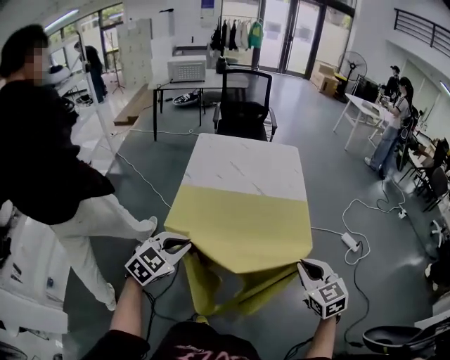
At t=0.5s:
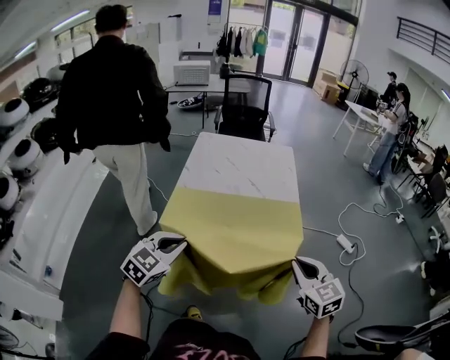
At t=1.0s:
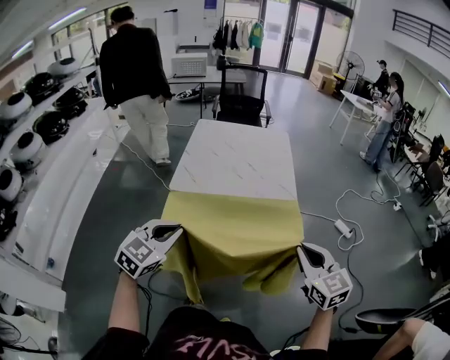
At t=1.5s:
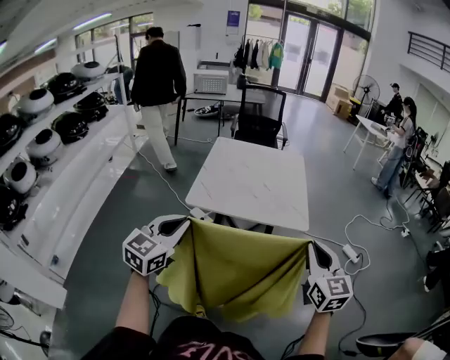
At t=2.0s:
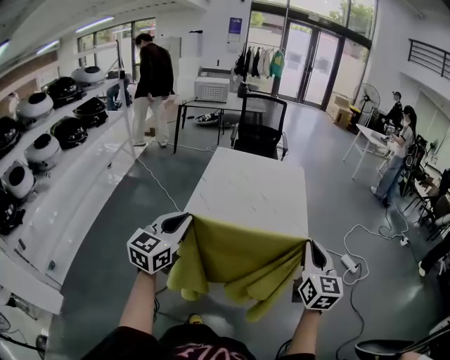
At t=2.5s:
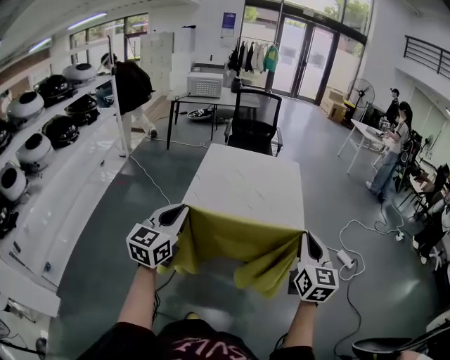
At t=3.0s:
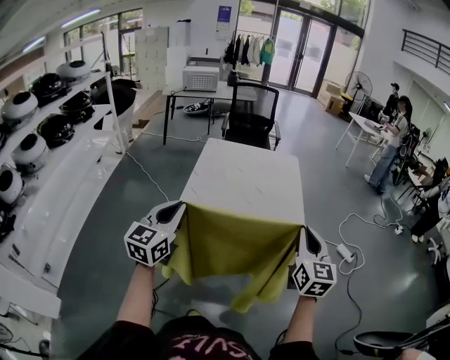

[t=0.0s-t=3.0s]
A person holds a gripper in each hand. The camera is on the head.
t=0.0s to t=1.5s: The two grippers go roughly 20 cm backward and upward. The left gripper changes its angle by about 30 degrees. Meanwhile the right gripper swivels roughly 20 degrees.
t=1.5s to t=3.0s: The two grippers go approximately 10 cm forward.

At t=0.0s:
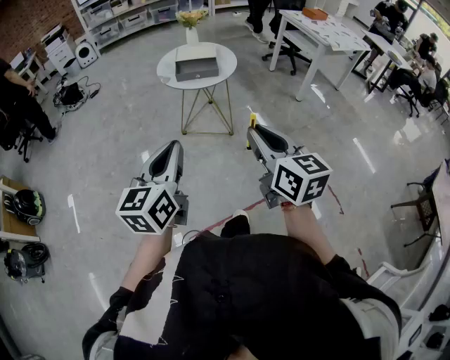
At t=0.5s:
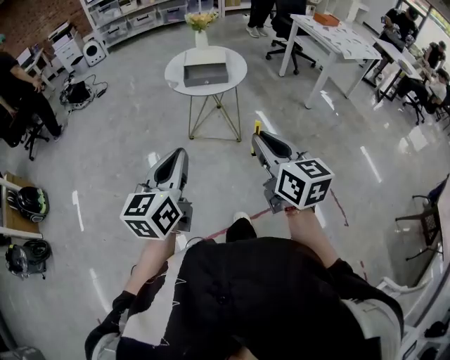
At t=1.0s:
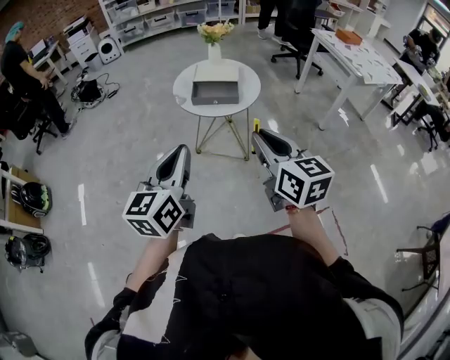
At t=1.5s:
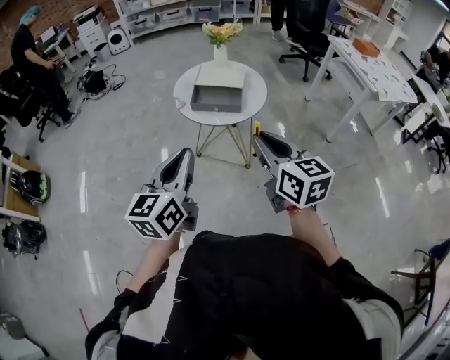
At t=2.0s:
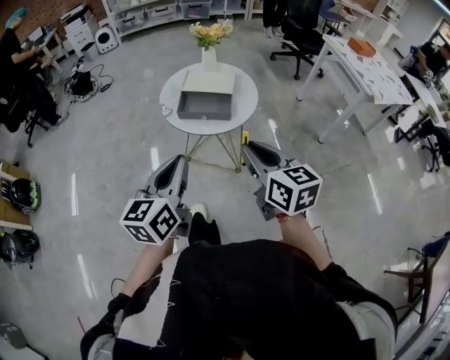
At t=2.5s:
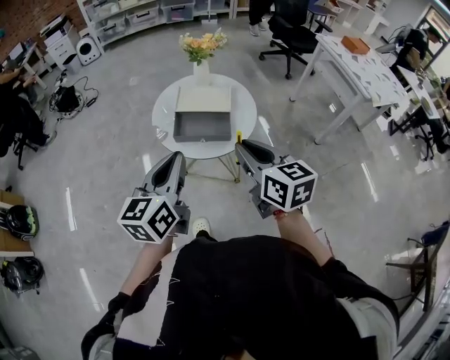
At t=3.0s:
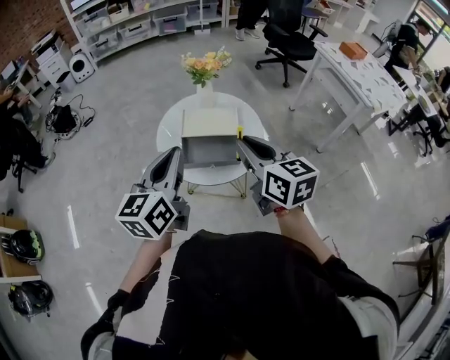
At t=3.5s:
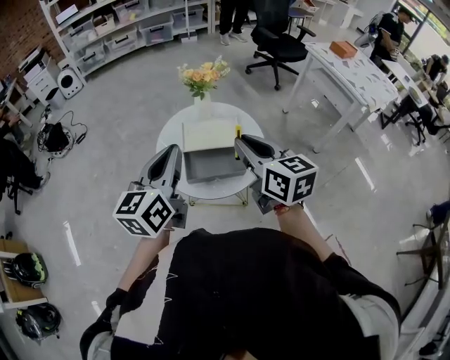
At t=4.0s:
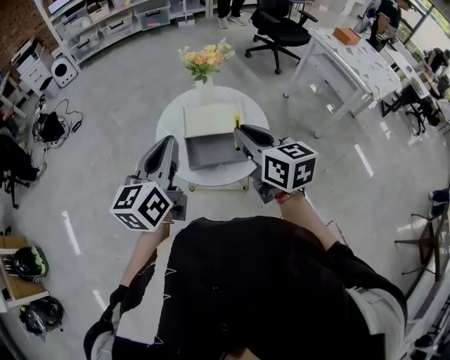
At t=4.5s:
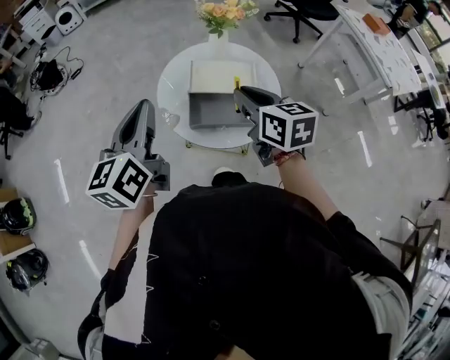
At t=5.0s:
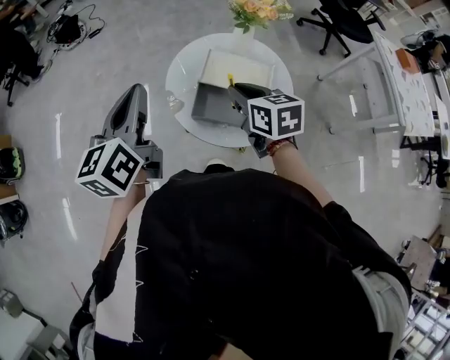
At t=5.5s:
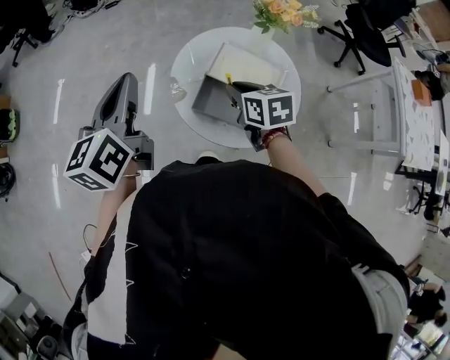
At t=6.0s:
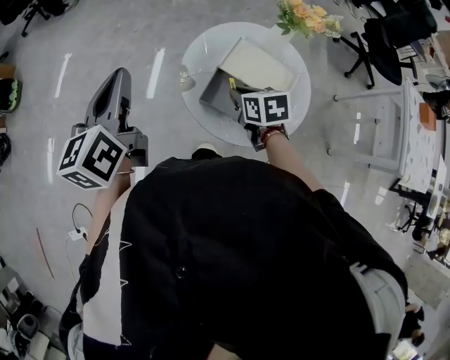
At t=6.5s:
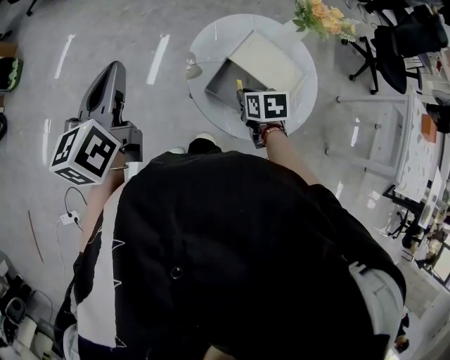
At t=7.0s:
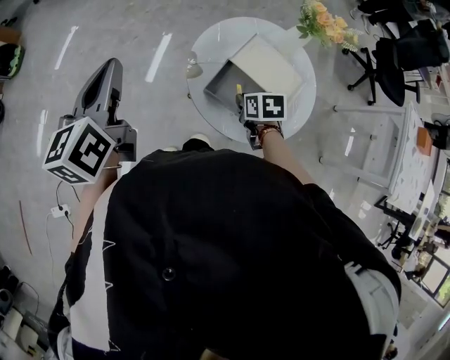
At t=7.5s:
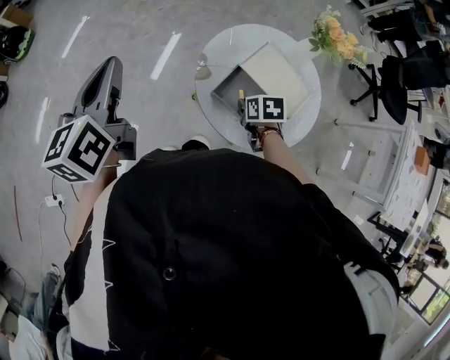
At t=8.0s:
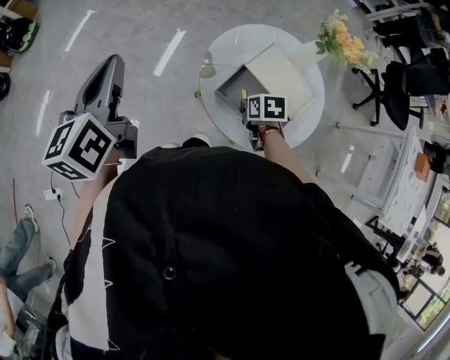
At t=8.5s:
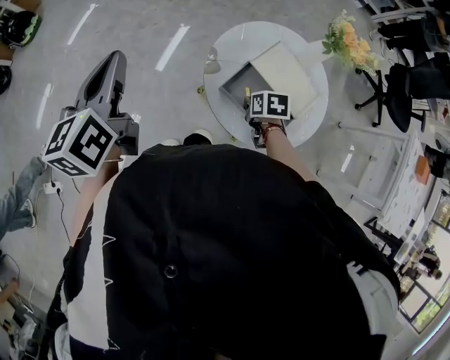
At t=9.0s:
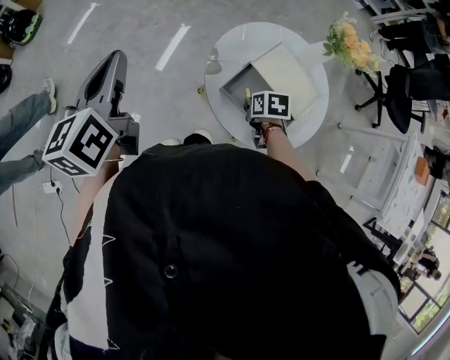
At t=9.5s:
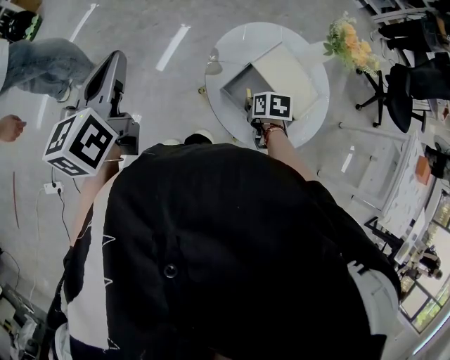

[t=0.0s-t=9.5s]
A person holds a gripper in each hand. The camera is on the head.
t=0.0s to t=2.0s: The grippers both shift forward by approximately 30 cm.
t=2.0s to t=4.0s: Both grippers travel together forward, approximately 30 cm.
t=4.0s to t=5.5s: The right gripper heads downward, covering roughly 15 cm, and changes its angle by roughly 40 degrees. The left gripper moves approximately 10 cm, and changes its angle by about 40 degrees.
t=5.5s to t=7.5s: The right gripper shifts approximately 15 cm downward, and turns by approximately 20 degrees. Meanwhile the left gripper shifts some 10 cm to the left.
t=7.5s to t=9.5s: The grippers stay close to where they were, moving slightly.

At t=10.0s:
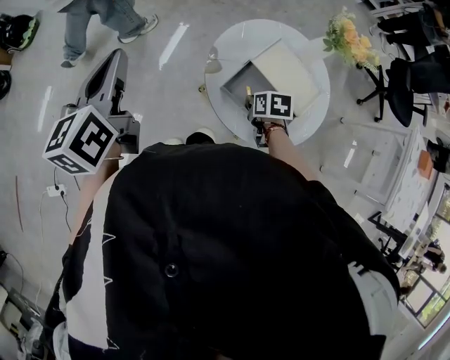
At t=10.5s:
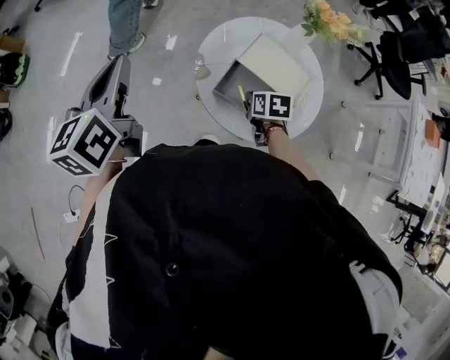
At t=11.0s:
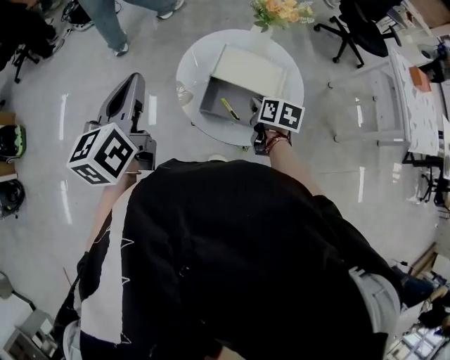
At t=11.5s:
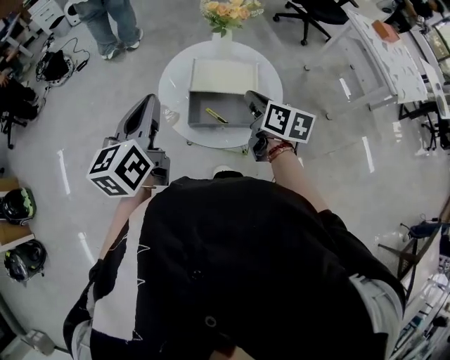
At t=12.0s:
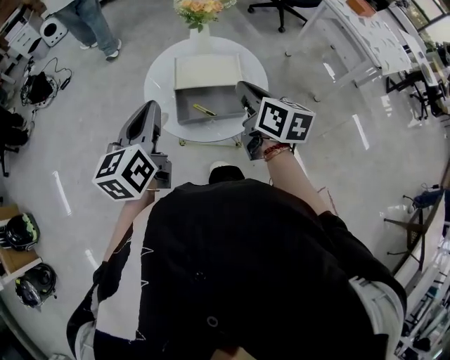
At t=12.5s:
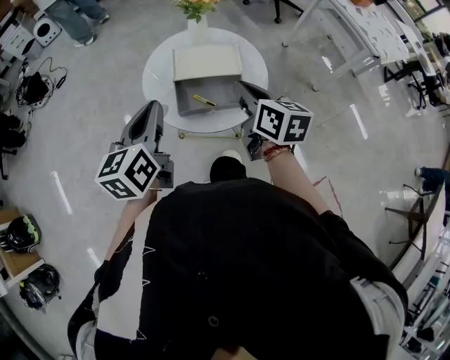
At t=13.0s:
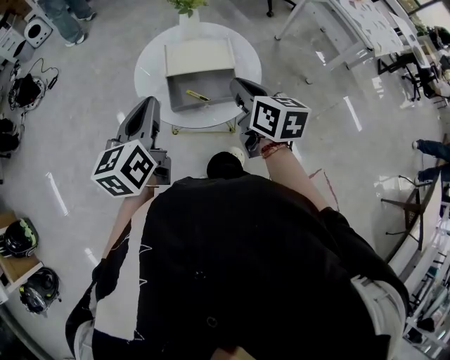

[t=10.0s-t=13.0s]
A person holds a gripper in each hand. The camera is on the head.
t=10.0s to t=11.5s: The right gripper travels upward by about 20 cm, and tips its fingers upward by some 40 degrees. Meanwhile the left gripper changes place by roughly 20 cm, and changes its angle by some 40 degrees.
t=11.5s to t=13.0s: The left gripper ends up about 5 cm from where it was, while the right gripper shifts about 5 cm backward.

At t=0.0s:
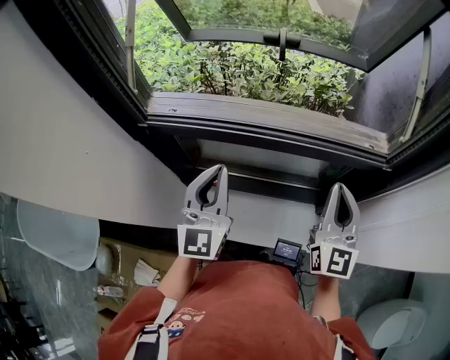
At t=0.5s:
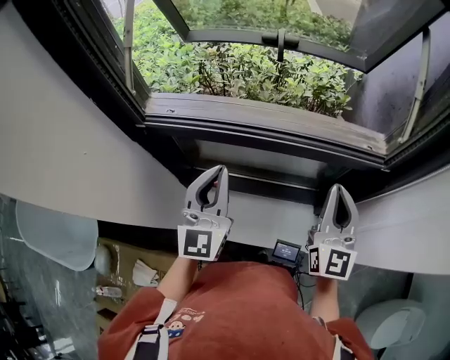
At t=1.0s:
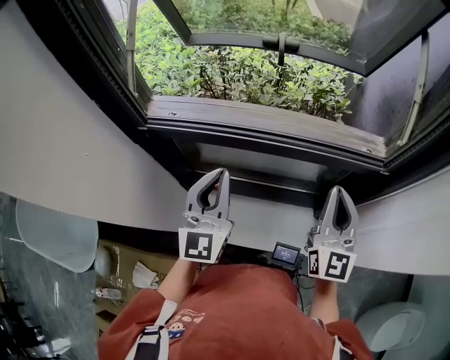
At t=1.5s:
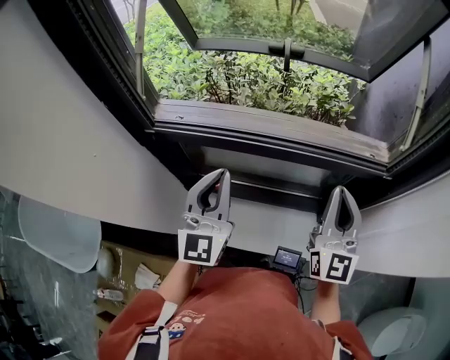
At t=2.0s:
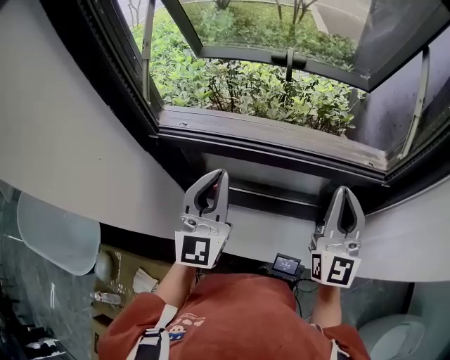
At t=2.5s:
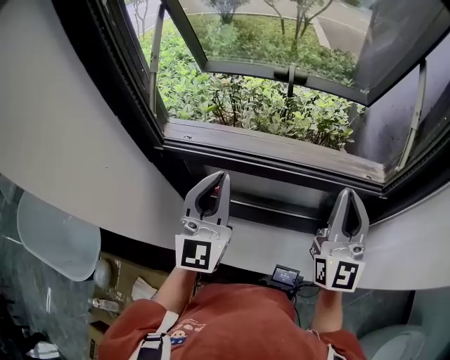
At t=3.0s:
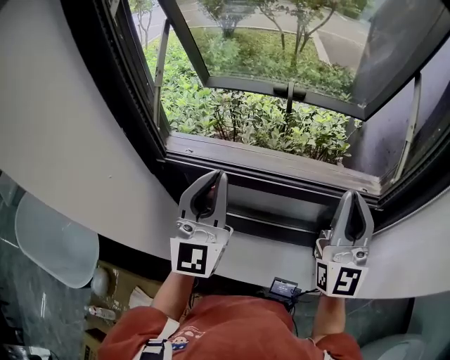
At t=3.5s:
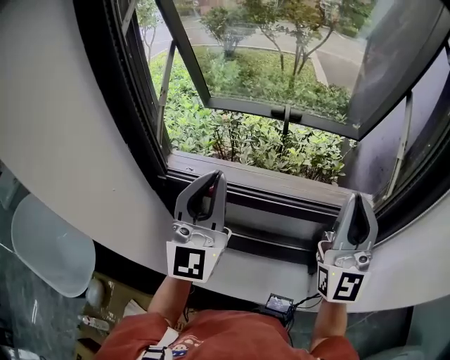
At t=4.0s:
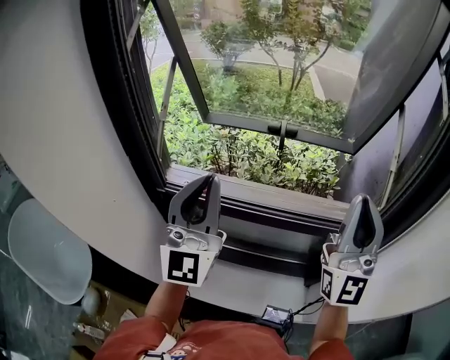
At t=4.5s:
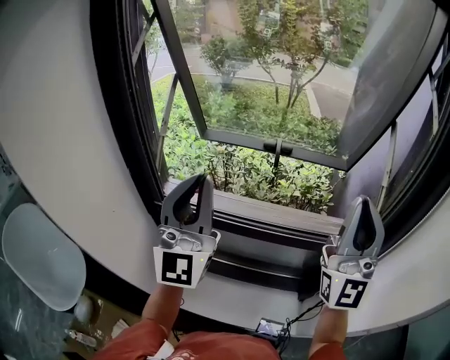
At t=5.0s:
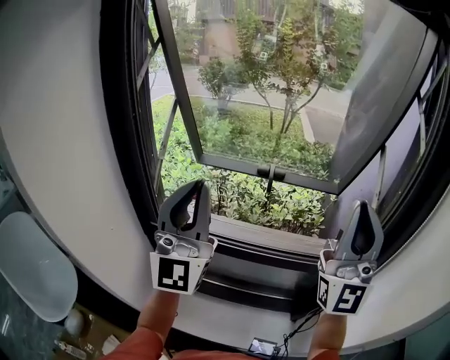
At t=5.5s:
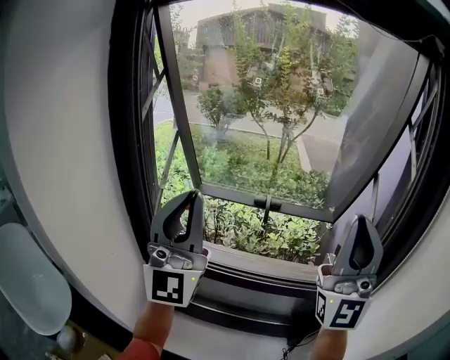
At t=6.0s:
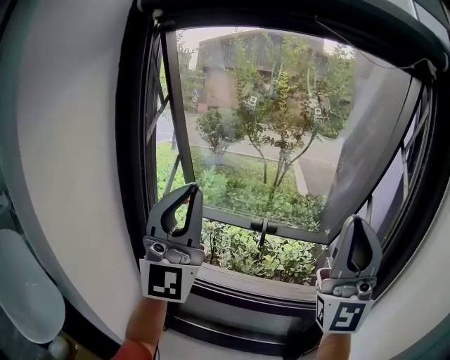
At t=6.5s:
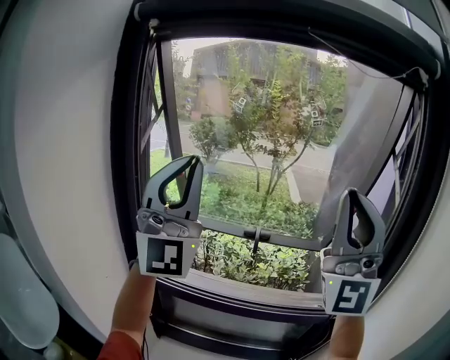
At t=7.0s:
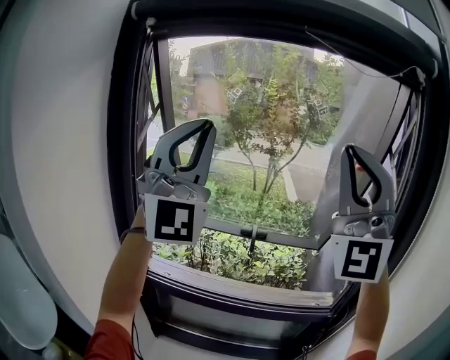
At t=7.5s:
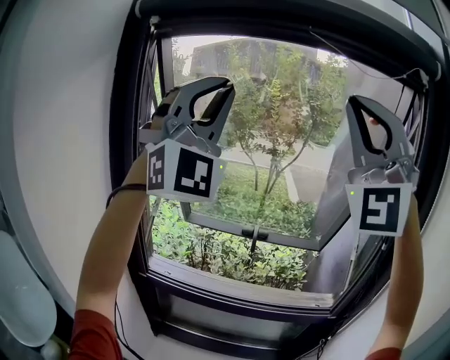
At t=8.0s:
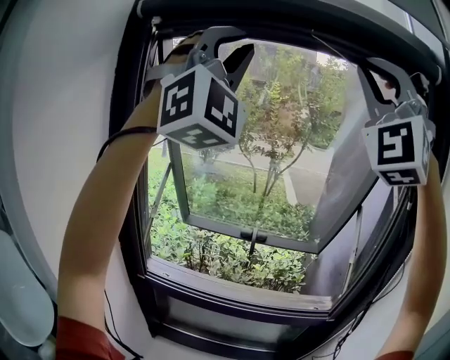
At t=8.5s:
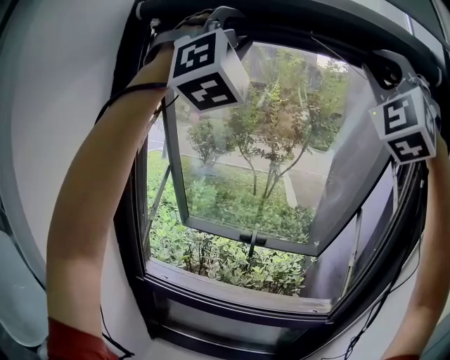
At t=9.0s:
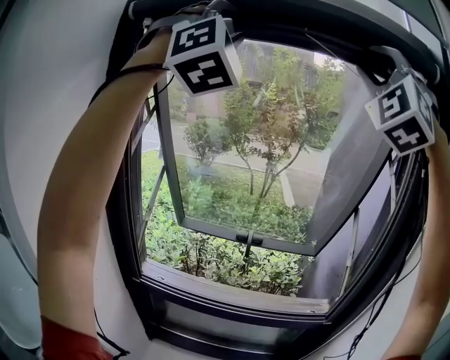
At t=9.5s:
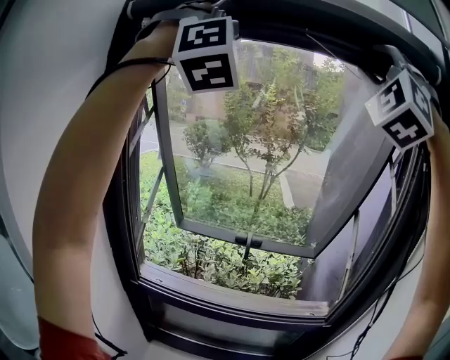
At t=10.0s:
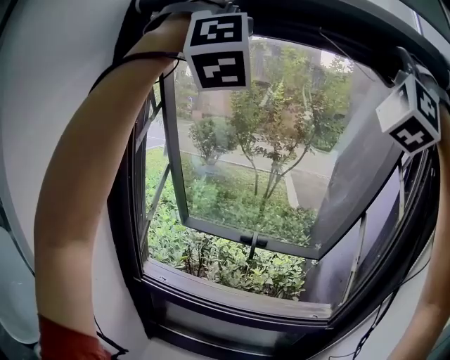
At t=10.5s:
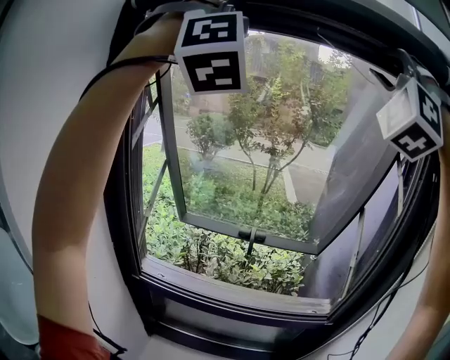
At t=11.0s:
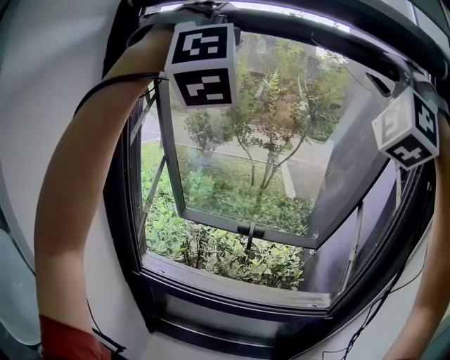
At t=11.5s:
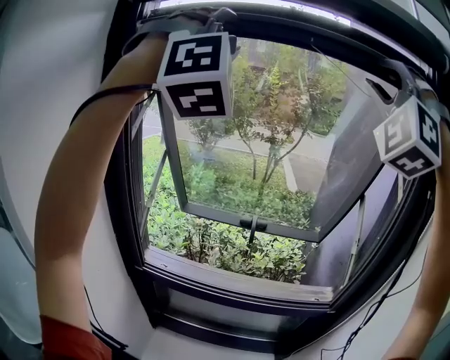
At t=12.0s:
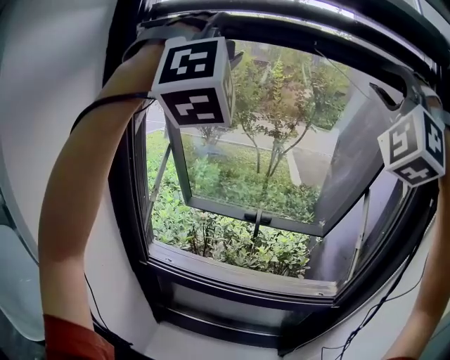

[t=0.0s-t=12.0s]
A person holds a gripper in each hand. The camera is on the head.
t=0.0s to t=2.0s: The right gripper shifts approximately 5 cm upward.
t=2.0s to t=4.0s: Both grippers travel together upward, some 15 cm. The right gripper swivels about 30 degrees. Meanwhile the left gripper rotates about 20 degrees.
t=4.0s to t=6.0s: Both grippers travel together upward, approximately 15 cm. The right gripper swivels about 20 degrees. The left gripper rotates roughly 20 degrees.
t=6.0s to t=8.0s: Both grippers move upward, roughly 25 cm. The right gripper rolls counterclockwise, seen from behind, by some 50 degrees; the left gripper rotates around the line of its fingers by roughly 50 degrees, clockwise from behind.
t=8.0s to t=10.0s: The left gripper is displaced forward and upward by roughly 10 cm, rotates about 30 degrees, and opens. Meanwhile the right gripper shifts some 5 cm forward, swivels roughly 30 degrees, and opens up.
t=10.0s to t=12.0s: Both grippers travel together downward, about 10 cm.
